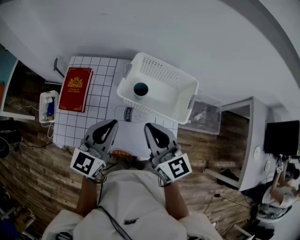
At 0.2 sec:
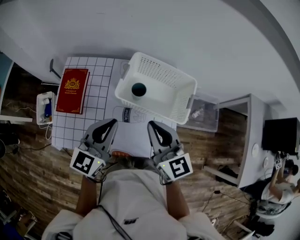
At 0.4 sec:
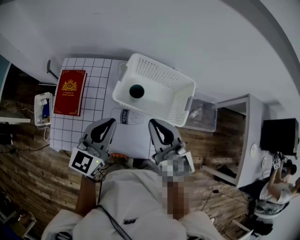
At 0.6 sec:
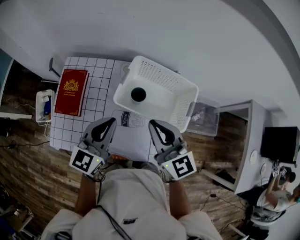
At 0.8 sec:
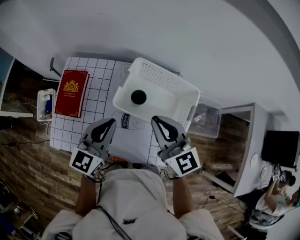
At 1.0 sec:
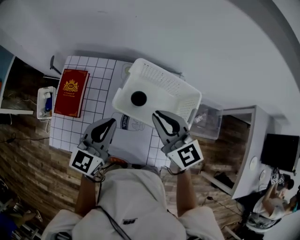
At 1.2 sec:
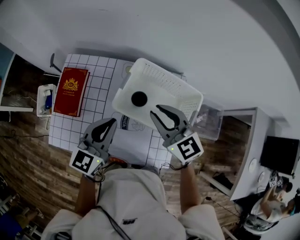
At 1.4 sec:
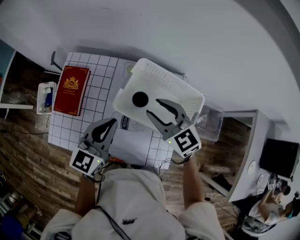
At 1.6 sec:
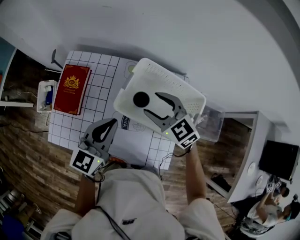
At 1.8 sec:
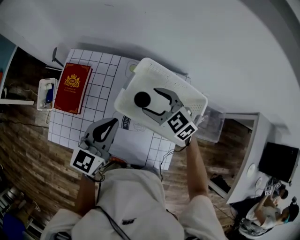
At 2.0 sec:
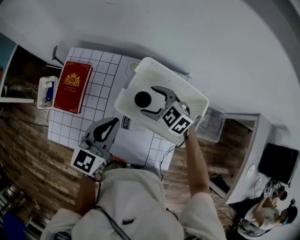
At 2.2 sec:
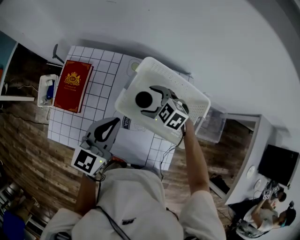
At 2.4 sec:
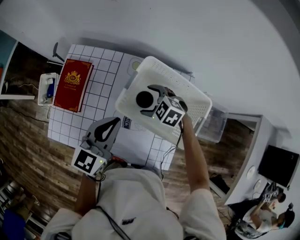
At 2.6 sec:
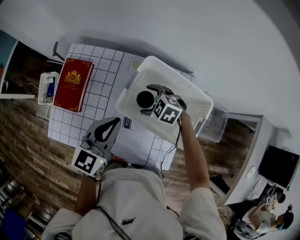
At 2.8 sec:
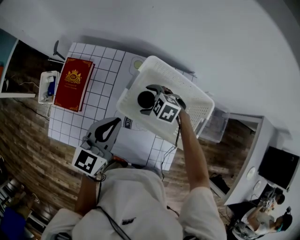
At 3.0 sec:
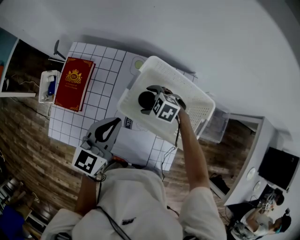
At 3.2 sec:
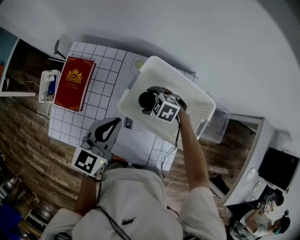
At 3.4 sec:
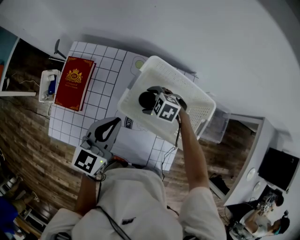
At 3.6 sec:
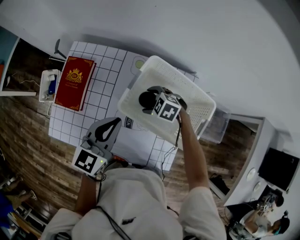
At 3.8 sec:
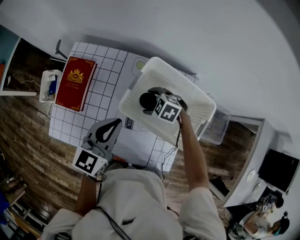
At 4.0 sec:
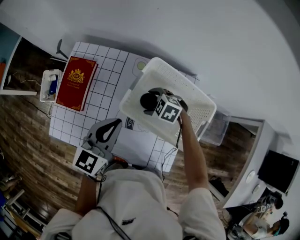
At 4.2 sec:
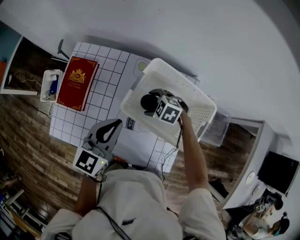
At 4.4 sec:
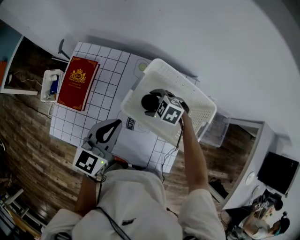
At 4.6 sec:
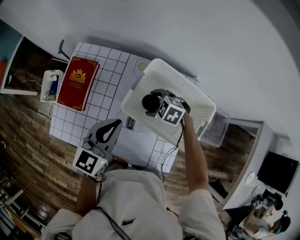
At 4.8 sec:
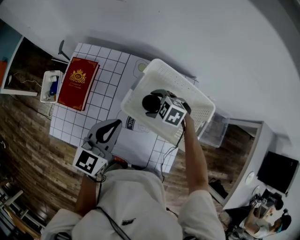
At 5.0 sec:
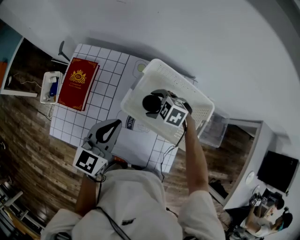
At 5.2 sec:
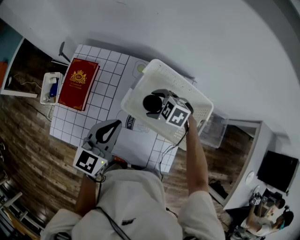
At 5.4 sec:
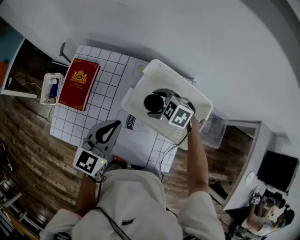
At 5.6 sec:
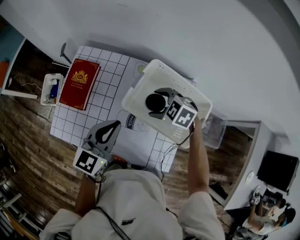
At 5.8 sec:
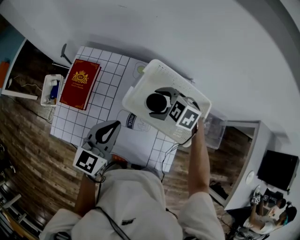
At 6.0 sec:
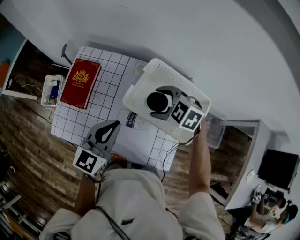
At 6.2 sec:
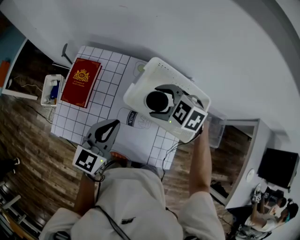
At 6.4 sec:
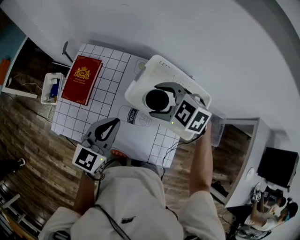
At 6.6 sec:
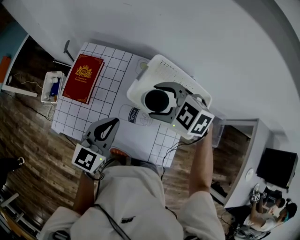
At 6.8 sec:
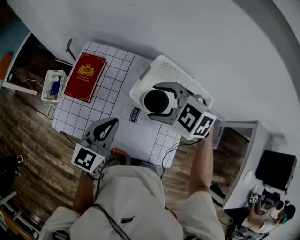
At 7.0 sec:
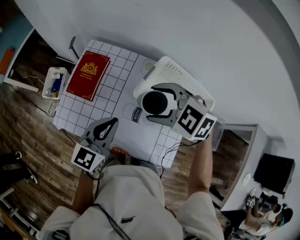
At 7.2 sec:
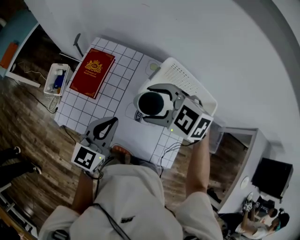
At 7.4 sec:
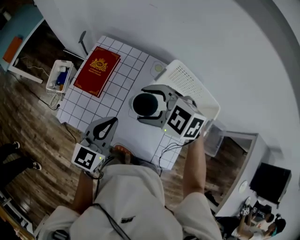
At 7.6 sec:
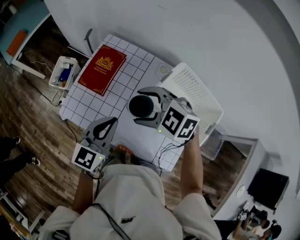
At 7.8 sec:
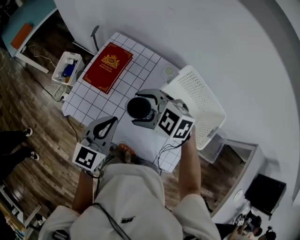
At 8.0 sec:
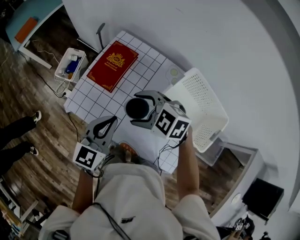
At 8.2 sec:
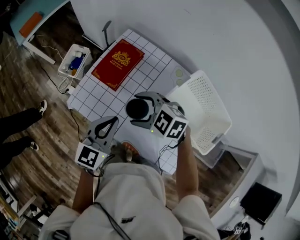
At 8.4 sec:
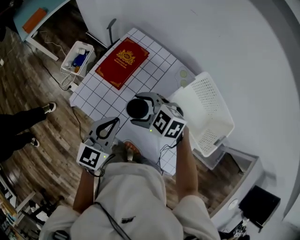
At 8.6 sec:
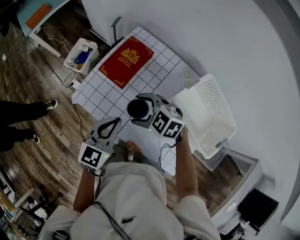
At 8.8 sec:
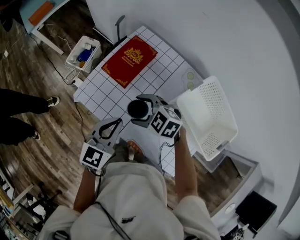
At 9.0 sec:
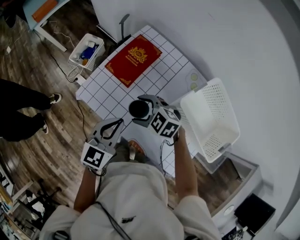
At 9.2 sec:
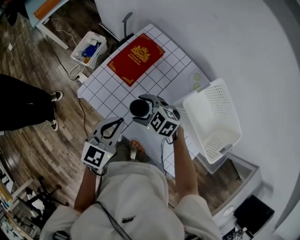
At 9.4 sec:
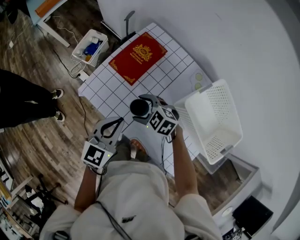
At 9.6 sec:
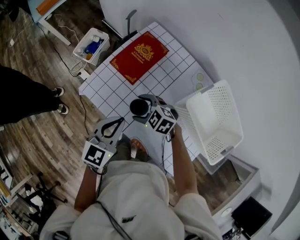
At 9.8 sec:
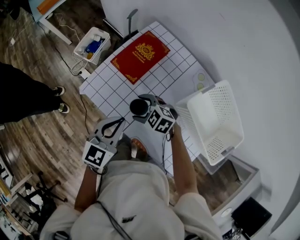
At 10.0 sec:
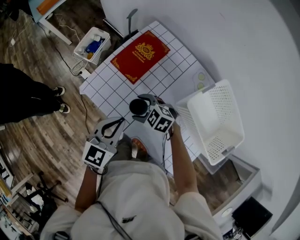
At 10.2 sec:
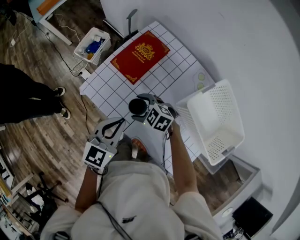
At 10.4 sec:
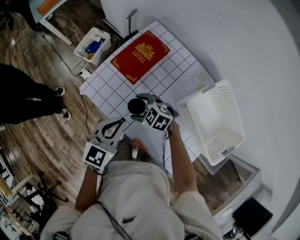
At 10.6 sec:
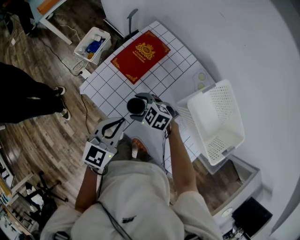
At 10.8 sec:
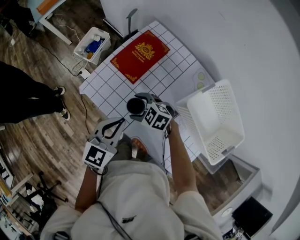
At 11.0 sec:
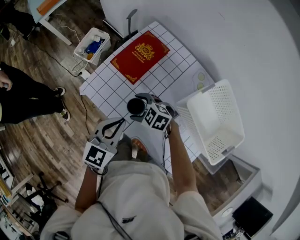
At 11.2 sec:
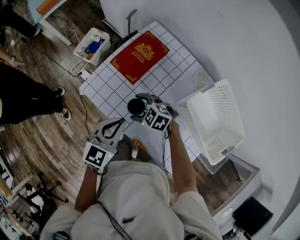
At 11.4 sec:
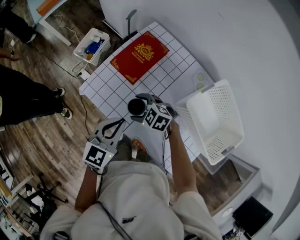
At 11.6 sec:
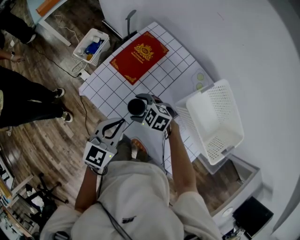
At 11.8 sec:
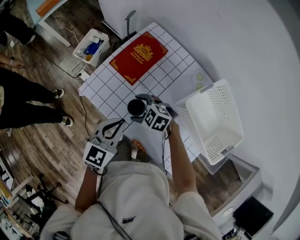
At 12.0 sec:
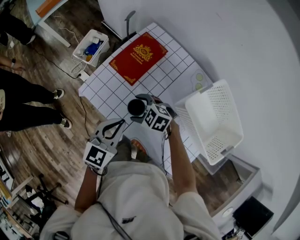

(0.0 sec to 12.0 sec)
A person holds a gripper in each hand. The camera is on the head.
0.0 sec - 1.6 sec: The left gripper moves forward, about 10 cm, while the right gripper goes approximately 20 cm forward and downward, swivels approximately 40 degrees, and opens up.
1.6 sec - 3.0 sec: The right gripper shifts some 20 cm downward, turns by approximately 40 degrees, and opens its fingers.
3.0 sec - 4.4 sec: The two grippers keep their place.
4.4 sec - 6.0 sec: The right gripper heads upward, covering about 15 cm.
6.0 sec - 7.6 sec: The left gripper heads to the left, covering some 10 cm, while the right gripper goes some 20 cm to the left, and changes its angle by about 20 degrees.
7.6 sec - 9.0 sec: The left gripper travels to the left and downward by approximately 10 cm. The right gripper is displaced downward and to the left by about 15 cm.
9.0 sec - 10.4 sec: The right gripper is displaced downward by some 10 cm.
10.4 sec - 12.0 sec: Both grippers stay put.

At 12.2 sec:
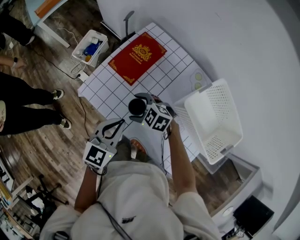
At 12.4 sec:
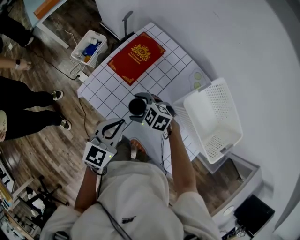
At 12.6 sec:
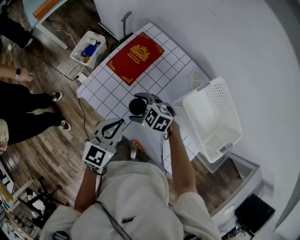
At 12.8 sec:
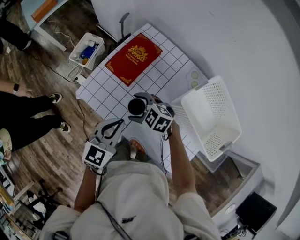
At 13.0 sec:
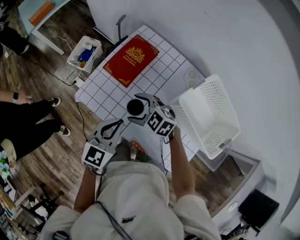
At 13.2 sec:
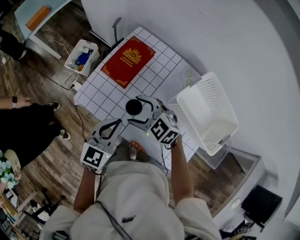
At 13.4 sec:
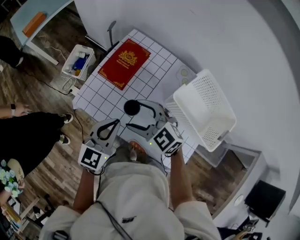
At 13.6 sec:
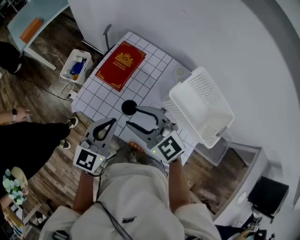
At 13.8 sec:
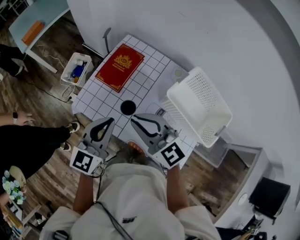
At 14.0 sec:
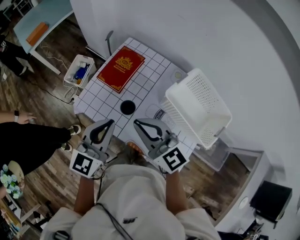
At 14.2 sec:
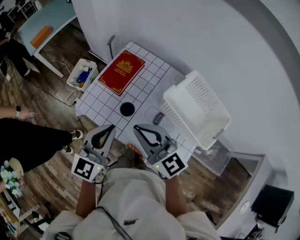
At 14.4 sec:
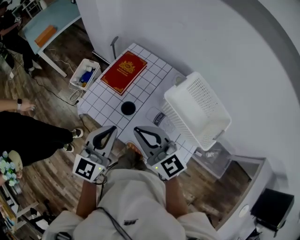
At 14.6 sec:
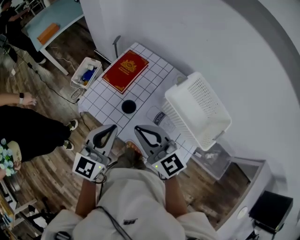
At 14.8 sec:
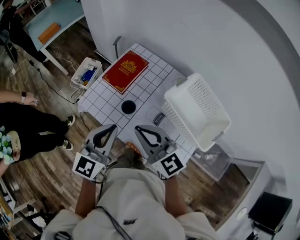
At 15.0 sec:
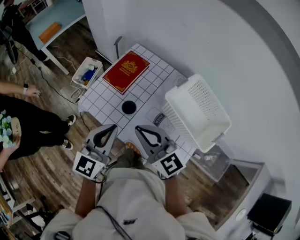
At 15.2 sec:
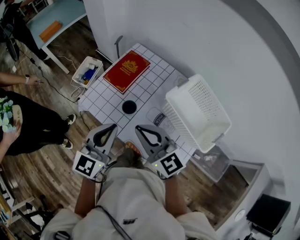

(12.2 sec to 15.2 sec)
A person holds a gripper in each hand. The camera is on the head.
12.2 sec - 13.8 sec: The right gripper moves upward, some 25 cm, tips its fingers upward by approximately 40 degrees, and closes its fingers. The left gripper is displaced upward by about 10 cm.
13.8 sec - 15.2 sec: Both grippers travel together backward, some 5 cm.

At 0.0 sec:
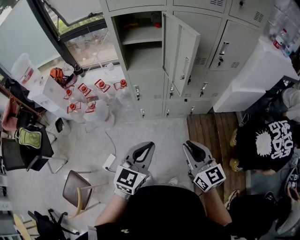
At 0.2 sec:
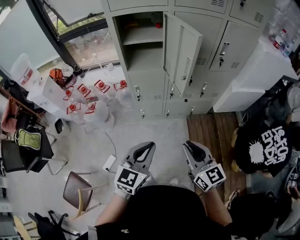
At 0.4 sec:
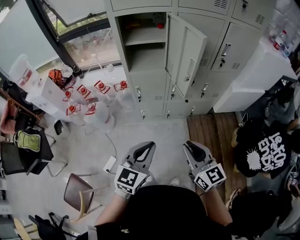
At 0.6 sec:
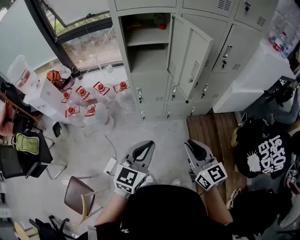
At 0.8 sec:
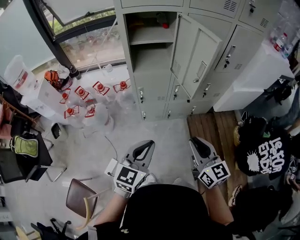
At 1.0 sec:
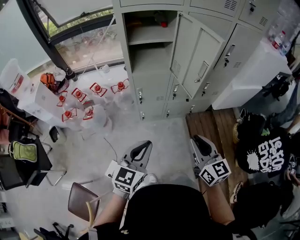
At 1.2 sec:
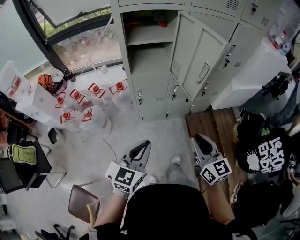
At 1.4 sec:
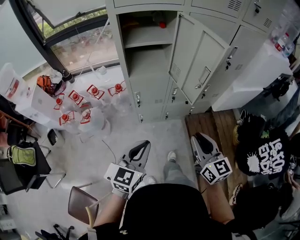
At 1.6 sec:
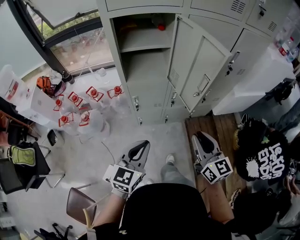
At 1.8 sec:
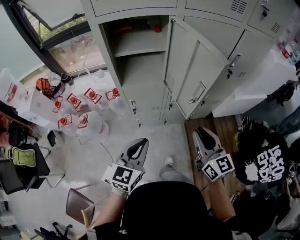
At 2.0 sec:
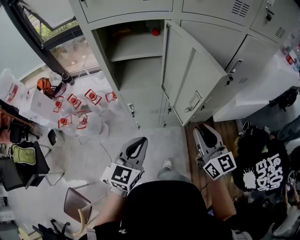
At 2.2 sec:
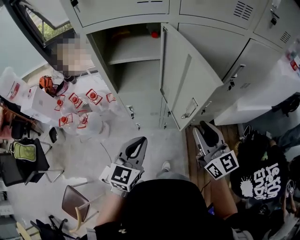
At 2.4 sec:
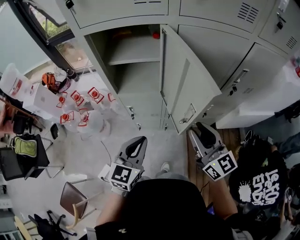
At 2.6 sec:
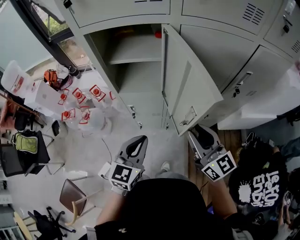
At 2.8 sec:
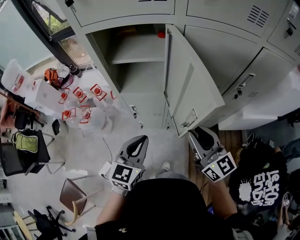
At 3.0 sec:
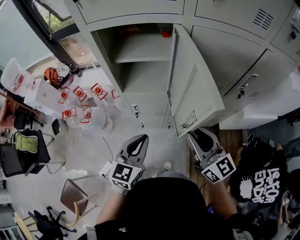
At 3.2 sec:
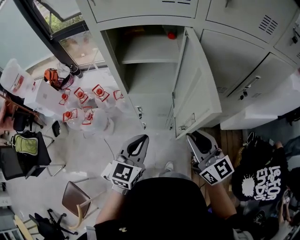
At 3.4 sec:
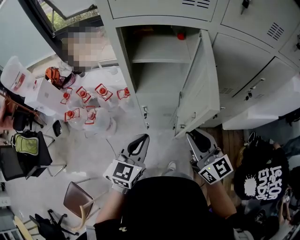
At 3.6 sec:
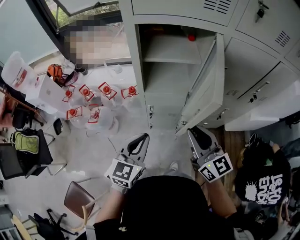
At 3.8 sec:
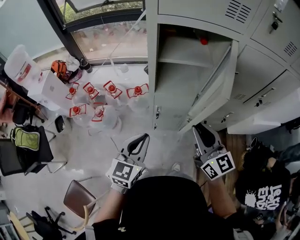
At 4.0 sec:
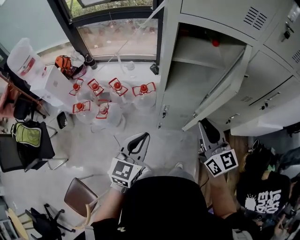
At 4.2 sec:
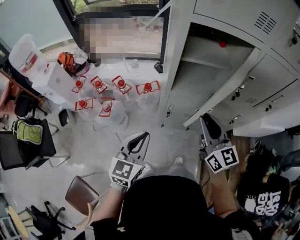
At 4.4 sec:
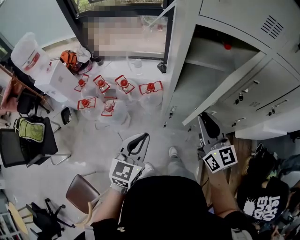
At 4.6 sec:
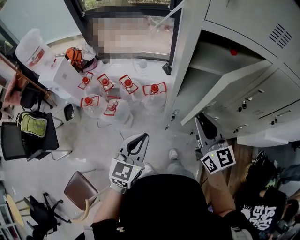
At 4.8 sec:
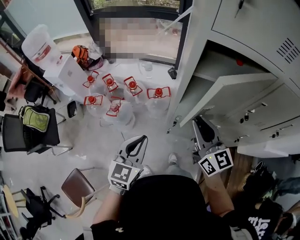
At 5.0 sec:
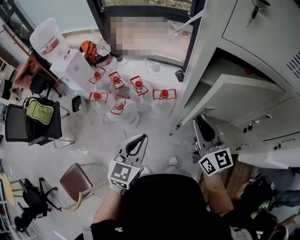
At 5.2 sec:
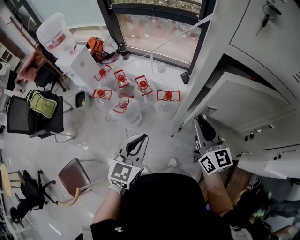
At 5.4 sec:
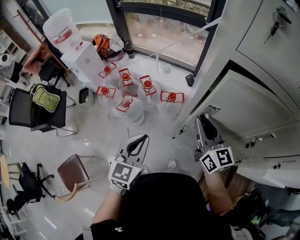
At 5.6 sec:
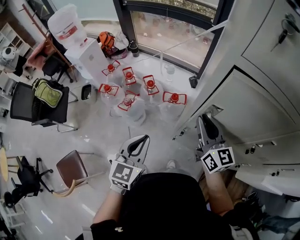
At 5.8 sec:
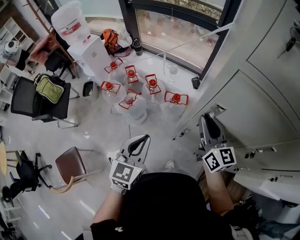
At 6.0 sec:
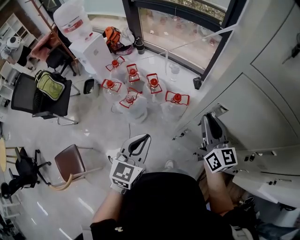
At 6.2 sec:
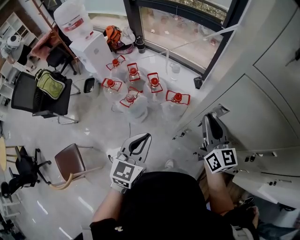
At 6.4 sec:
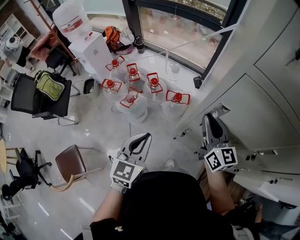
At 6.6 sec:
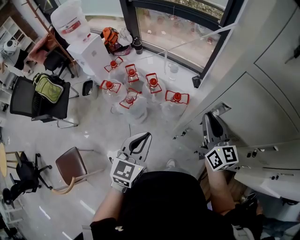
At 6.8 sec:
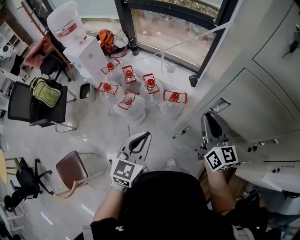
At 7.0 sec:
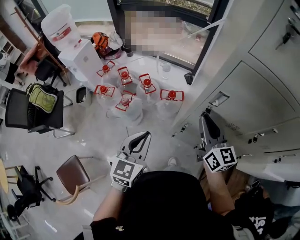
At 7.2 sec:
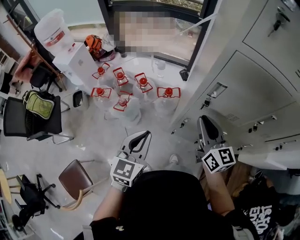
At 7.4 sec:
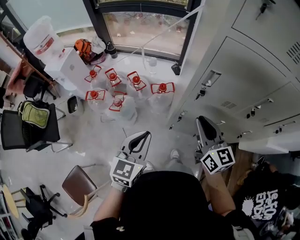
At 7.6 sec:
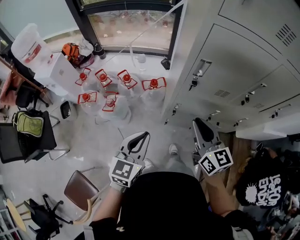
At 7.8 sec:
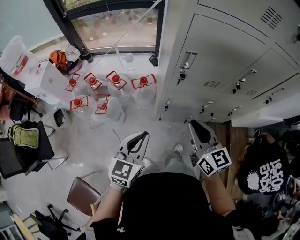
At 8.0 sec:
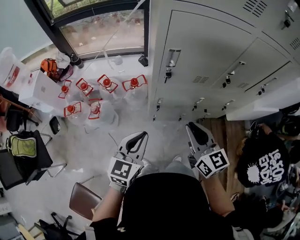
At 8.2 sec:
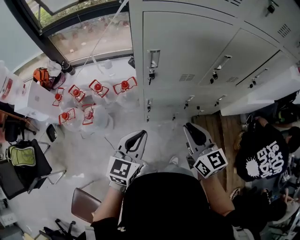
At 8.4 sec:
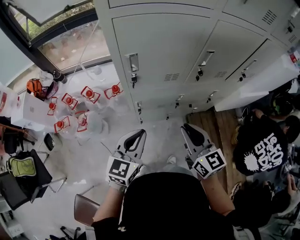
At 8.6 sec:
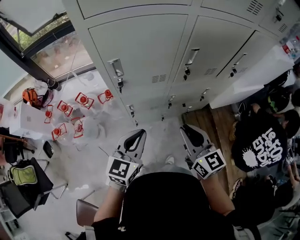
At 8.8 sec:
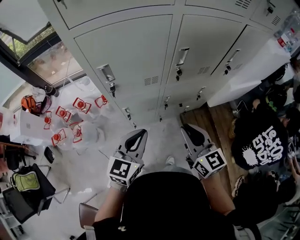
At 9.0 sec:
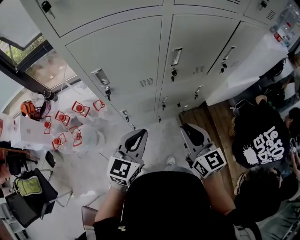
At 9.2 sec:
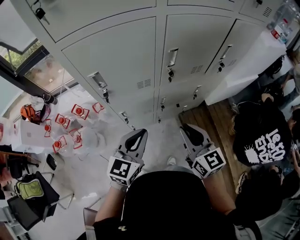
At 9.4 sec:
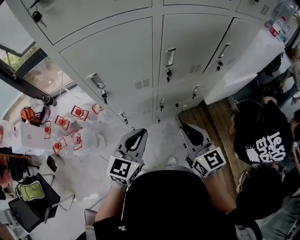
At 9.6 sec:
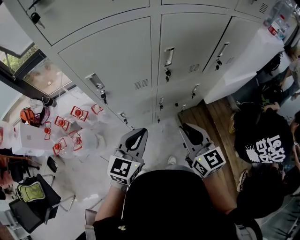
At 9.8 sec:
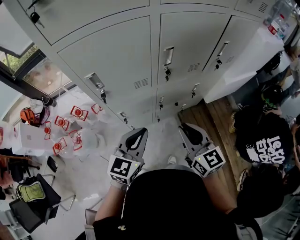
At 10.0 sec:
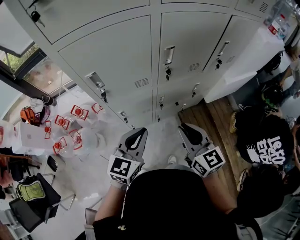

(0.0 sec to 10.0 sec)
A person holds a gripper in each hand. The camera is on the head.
0.0 sec - 1.4 sec: The right gripper heads forward and to the left, covering some 10 cm, while the left gripper goes about 15 cm to the left and forward.
1.4 sec - 2.8 sec: The right gripper goes some 20 cm forward, and swivels some 20 degrees; the left gripper goes about 20 cm forward and to the right.
2.8 sec - 4.2 sec: The two grippers go about 25 cm to the left.
4.2 sec - 5.8 sec: The right gripper is displaced forward by roughly 20 cm, and rotates roughly 20 degrees; the left gripper is displaced forward by roughly 5 cm, and turns by approximately 30 degrees.
5.8 sec - 7.2 sec: The right gripper is displaced backward by approximately 10 cm.
7.2 sec - 8.6 sec: The left gripper moves approximately 20 cm, and changes its angle by some 30 degrees, while the right gripper shifts by some 25 cm, and changes its angle by some 20 degrees.
8.6 sec - 10.0 sec: The left gripper is displaced to the right by some 5 cm.
